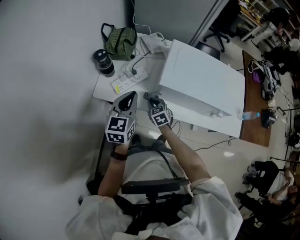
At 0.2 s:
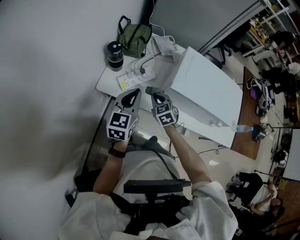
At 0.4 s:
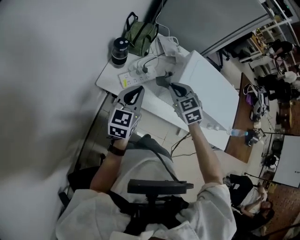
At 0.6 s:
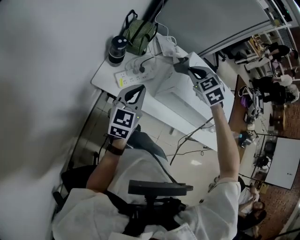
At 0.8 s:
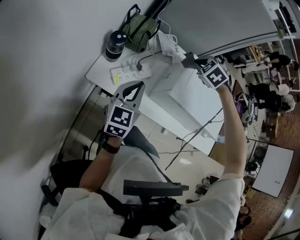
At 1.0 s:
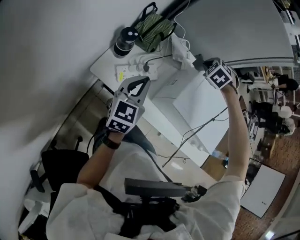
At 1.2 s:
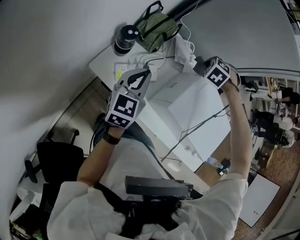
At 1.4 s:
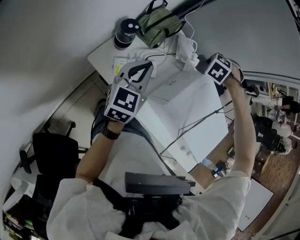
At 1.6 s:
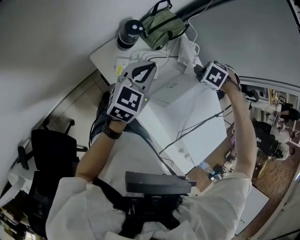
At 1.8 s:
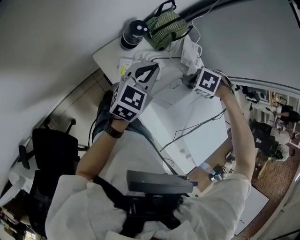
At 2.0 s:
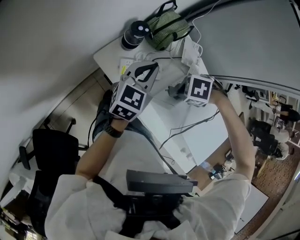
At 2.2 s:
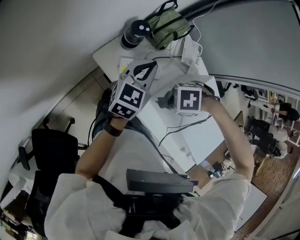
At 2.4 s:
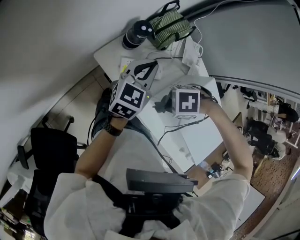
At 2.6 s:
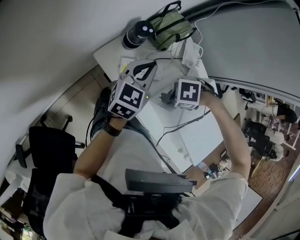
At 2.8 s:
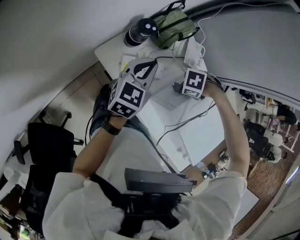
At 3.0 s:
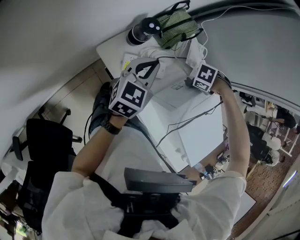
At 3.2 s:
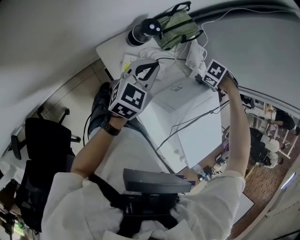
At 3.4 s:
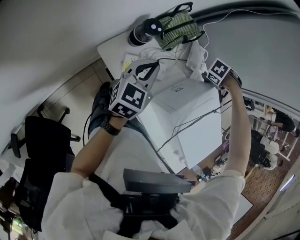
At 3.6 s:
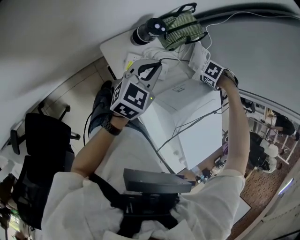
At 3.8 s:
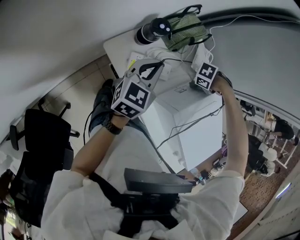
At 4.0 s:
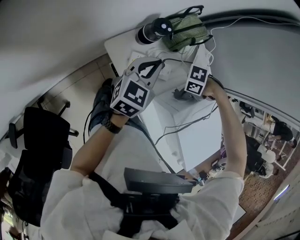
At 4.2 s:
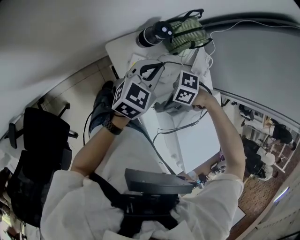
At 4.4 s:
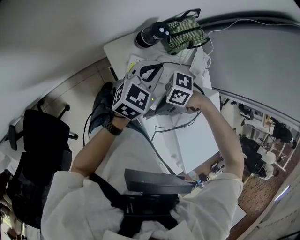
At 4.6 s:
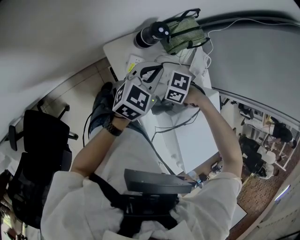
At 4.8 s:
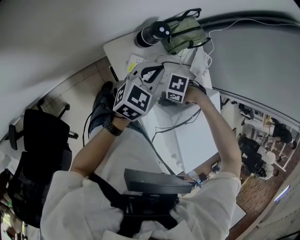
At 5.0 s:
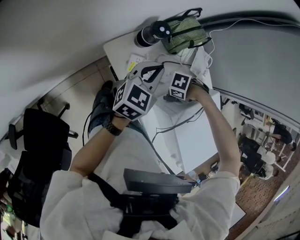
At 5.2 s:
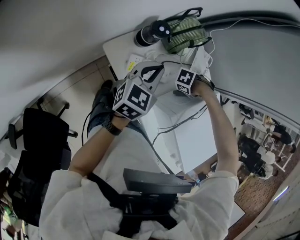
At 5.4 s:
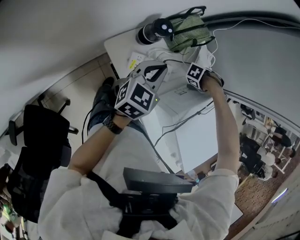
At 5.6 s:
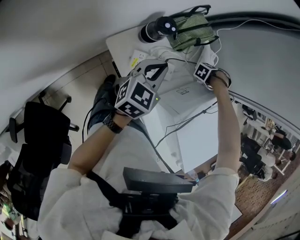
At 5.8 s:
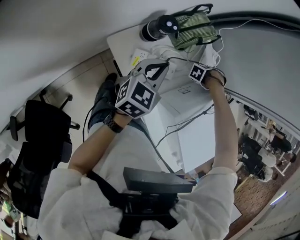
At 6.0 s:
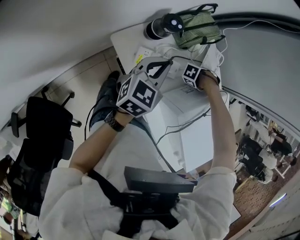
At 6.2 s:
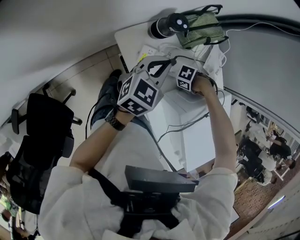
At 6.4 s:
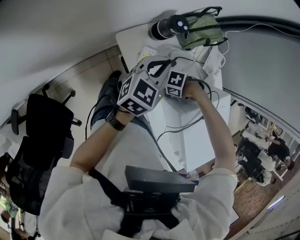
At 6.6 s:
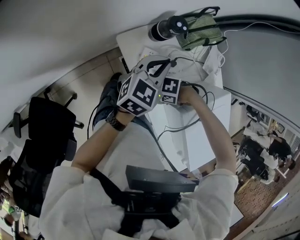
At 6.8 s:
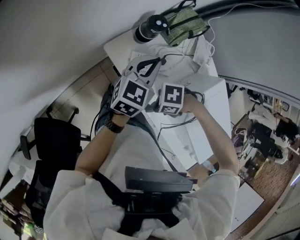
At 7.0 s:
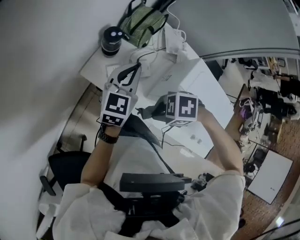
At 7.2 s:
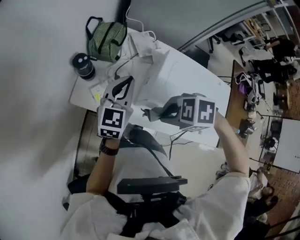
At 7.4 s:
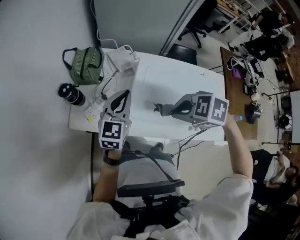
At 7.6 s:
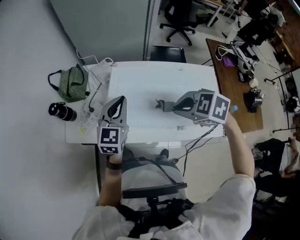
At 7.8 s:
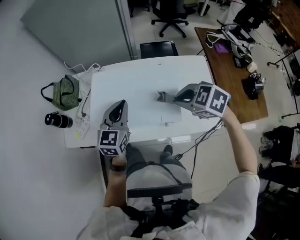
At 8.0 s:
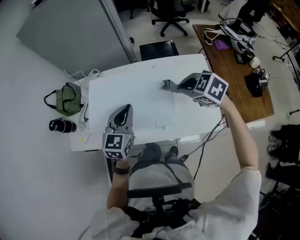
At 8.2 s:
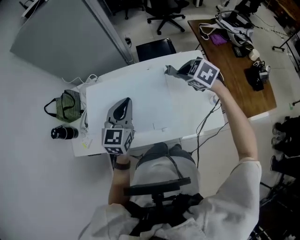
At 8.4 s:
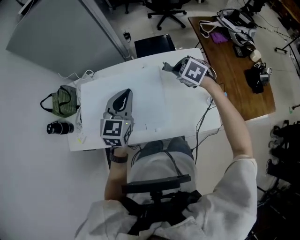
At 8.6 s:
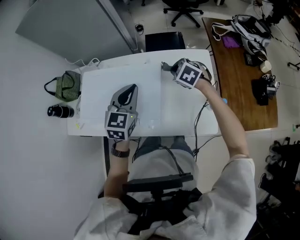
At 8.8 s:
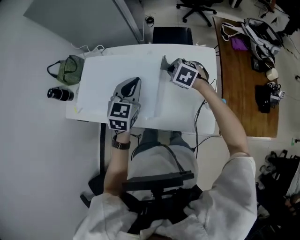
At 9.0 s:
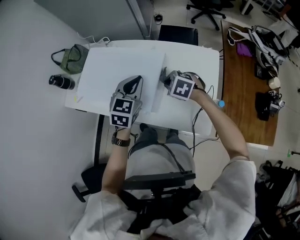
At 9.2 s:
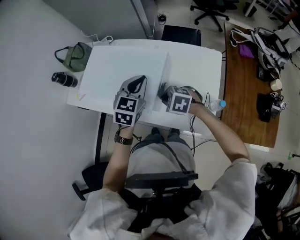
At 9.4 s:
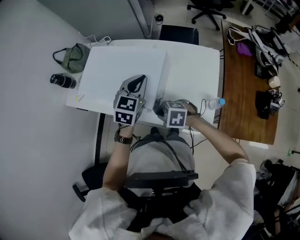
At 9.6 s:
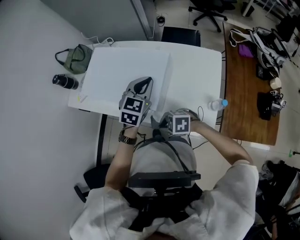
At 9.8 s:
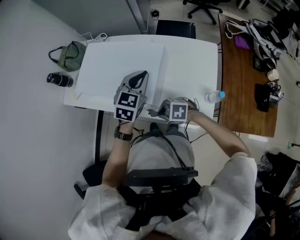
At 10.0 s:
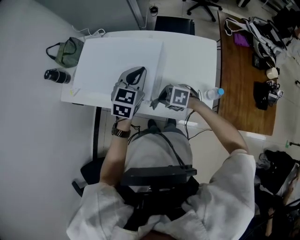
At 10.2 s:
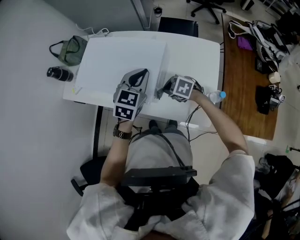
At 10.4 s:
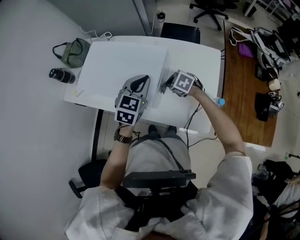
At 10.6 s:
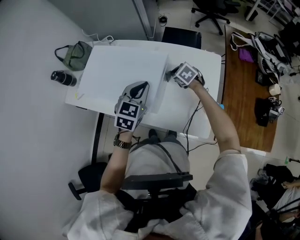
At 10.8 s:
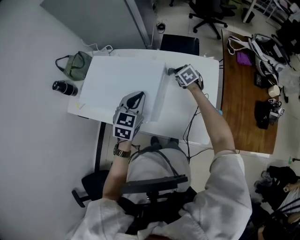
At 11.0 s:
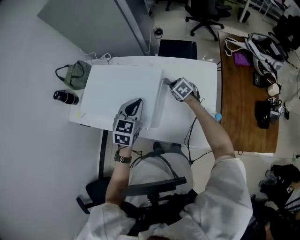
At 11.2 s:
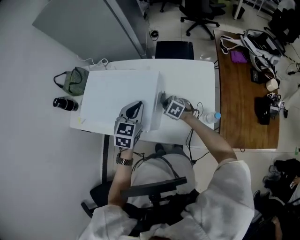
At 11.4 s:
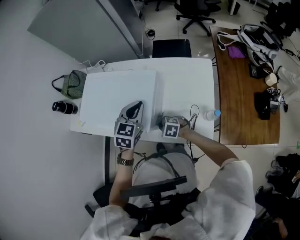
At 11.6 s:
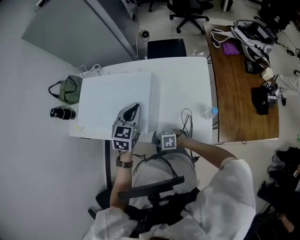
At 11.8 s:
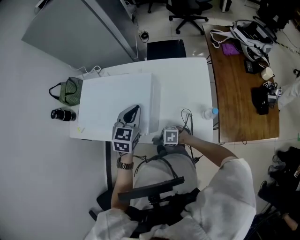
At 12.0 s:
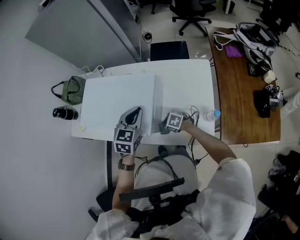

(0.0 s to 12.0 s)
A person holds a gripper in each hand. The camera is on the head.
0.0 s - 1.6 s: The left gripper shifts by approximately 20 cm. Meanwhile the right gripper changes place by about 35 cm, and twists some 70 degrees counterclockwise, seen from behind.
1.6 s - 3.0 s: The left gripper ends up approximately 5 cm from where it was, while the right gripper moves downward, approximately 10 cm, and swivels some 20 degrees.
3.0 s - 4.4 s: The right gripper shifts by roughly 25 cm, and tips its fingers upward by roughly 30 degrees.
4.4 s - 6.0 s: The right gripper changes place by some 35 cm, and changes its angle by about 60 degrees.
6.0 s - 7.6 s: Both grippers are carried some 40 cm. The left gripper changes its angle by about 40 degrees. Meanwhile the right gripper turns by approximately 90 degrees.
7.6 s - 9.0 s: The left gripper moves some 40 cm. The right gripper changes place by roughly 40 cm.
9.0 s - 10.4 s: The right gripper travels downward by roughly 10 cm.
10.4 s - 12.0 s: The right gripper goes about 10 cm downward.

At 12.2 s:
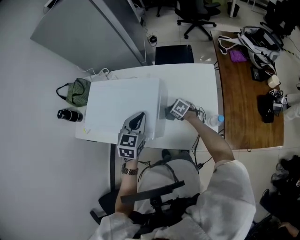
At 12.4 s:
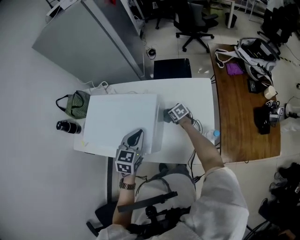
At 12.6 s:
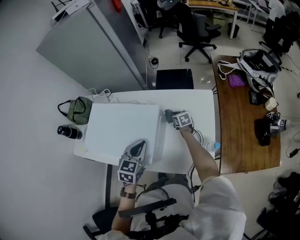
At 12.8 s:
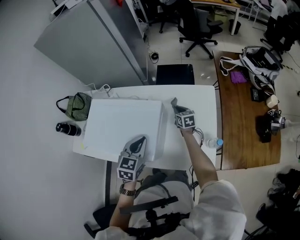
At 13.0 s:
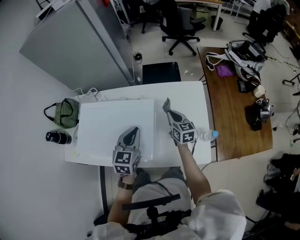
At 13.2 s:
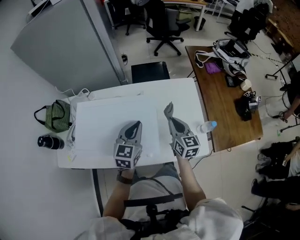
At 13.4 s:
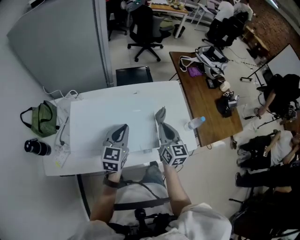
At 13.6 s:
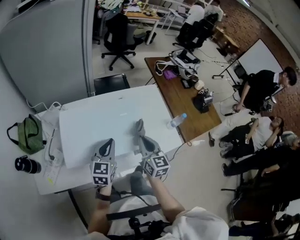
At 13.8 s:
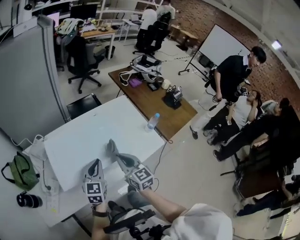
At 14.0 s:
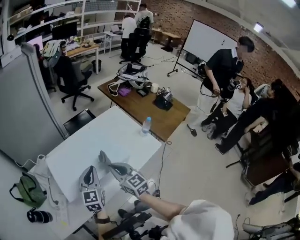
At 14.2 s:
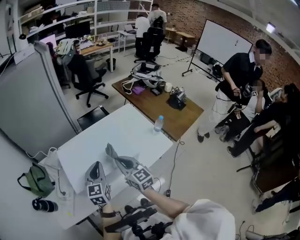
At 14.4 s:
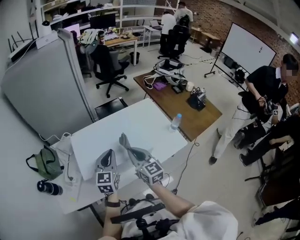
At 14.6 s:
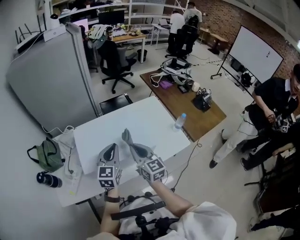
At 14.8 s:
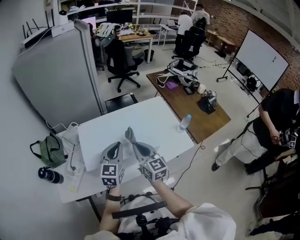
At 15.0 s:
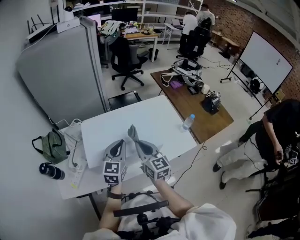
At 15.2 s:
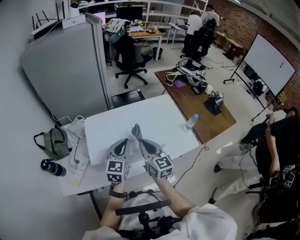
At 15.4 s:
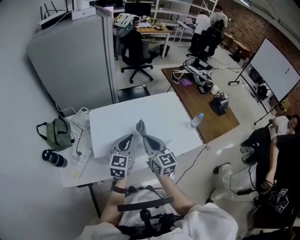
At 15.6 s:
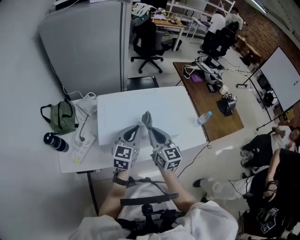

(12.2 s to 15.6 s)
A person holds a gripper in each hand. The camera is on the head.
12.2 s - 13.8 s: The left gripper ends up about 30 cm from where it was, and rotates some 30 degrees. Meanwhile the right gripper ends up some 50 cm from where it was, and tilts its fingers approximately 40 degrees upward.
13.8 s - 15.6 s: The right gripper moves to the left, some 10 cm. Meanwhile the left gripper heads upward, covering about 5 cm.

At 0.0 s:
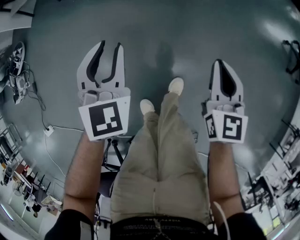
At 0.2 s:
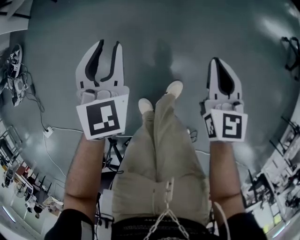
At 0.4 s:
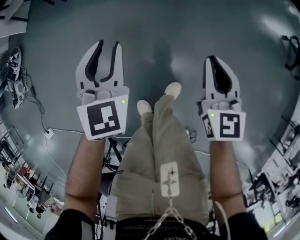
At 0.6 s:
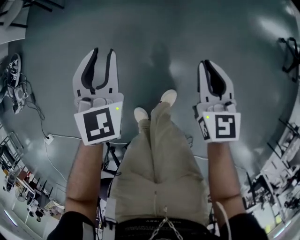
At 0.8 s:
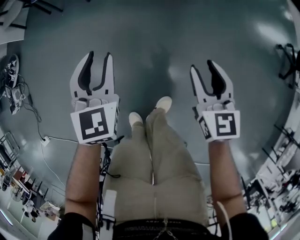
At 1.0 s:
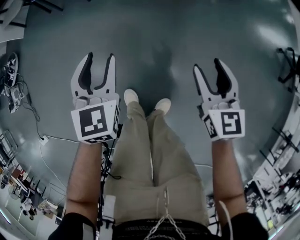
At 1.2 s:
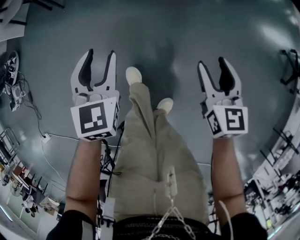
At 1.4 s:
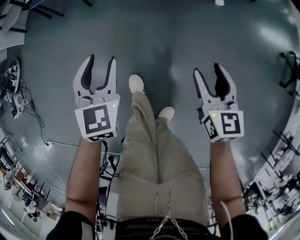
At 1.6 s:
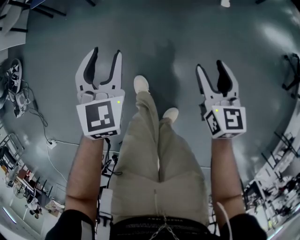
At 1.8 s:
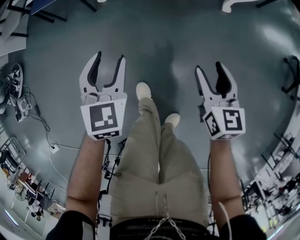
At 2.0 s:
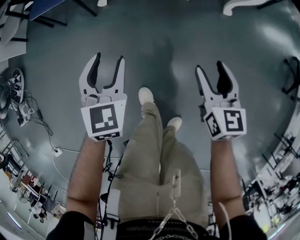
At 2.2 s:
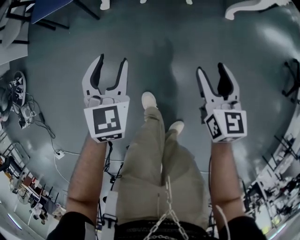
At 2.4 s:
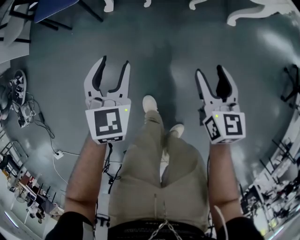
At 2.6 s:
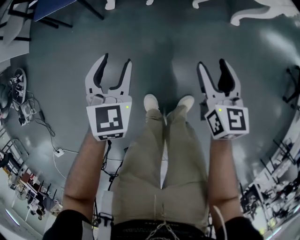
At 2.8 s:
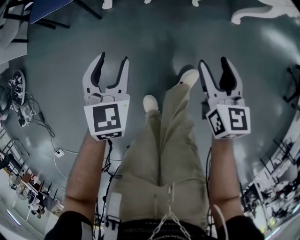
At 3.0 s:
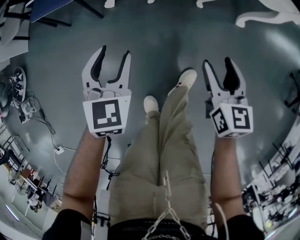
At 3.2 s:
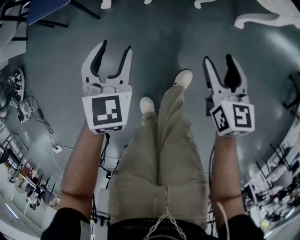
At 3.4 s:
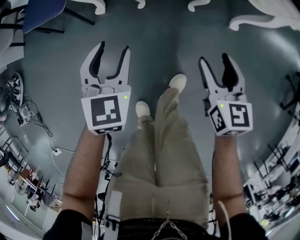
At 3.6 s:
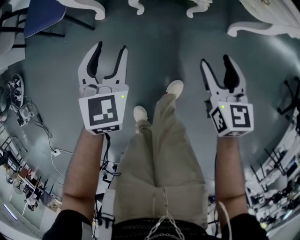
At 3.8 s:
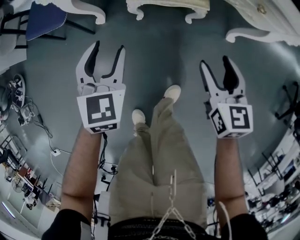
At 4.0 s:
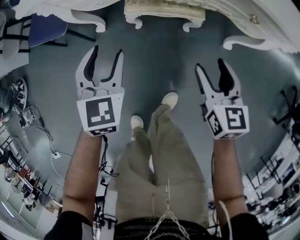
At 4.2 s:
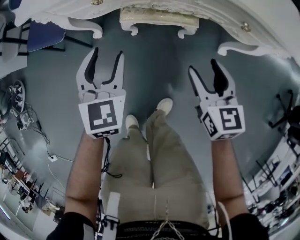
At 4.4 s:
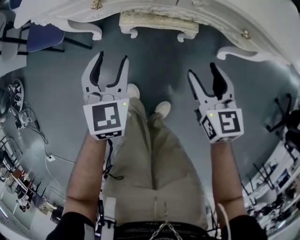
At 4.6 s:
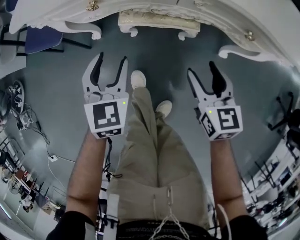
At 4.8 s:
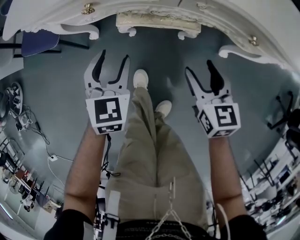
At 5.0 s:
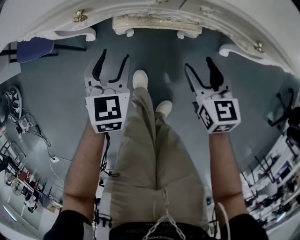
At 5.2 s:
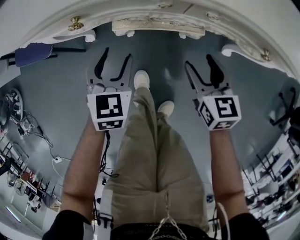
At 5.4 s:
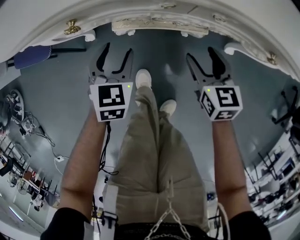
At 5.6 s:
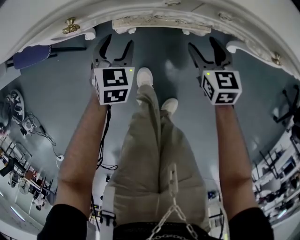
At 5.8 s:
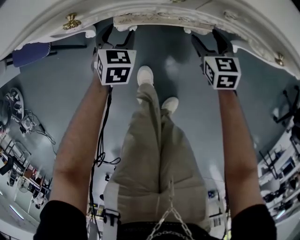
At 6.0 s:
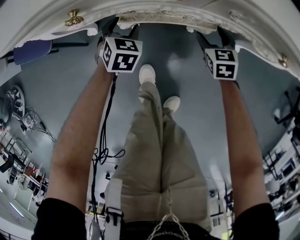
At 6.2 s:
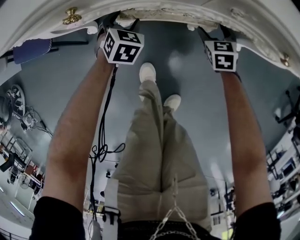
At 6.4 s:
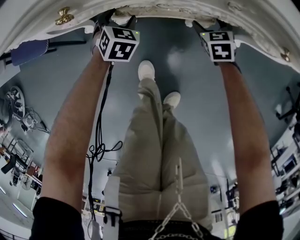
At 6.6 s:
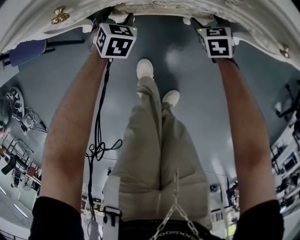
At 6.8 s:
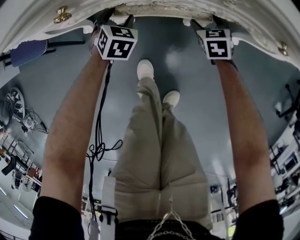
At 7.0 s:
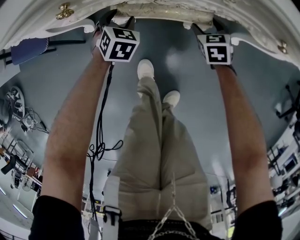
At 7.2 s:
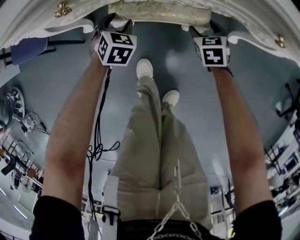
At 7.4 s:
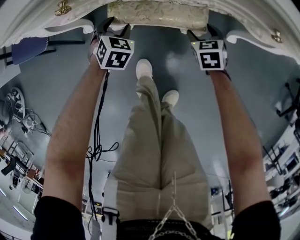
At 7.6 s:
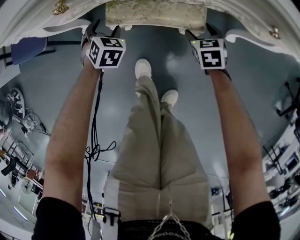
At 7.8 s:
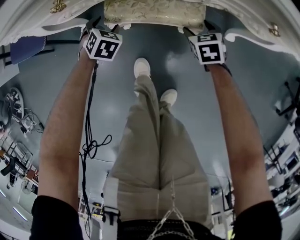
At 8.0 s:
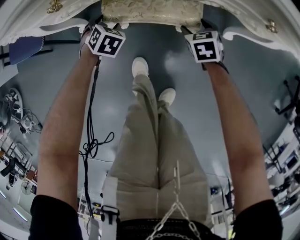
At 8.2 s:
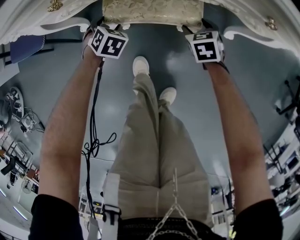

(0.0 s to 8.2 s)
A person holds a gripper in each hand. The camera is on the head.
0.0 s - 1.6 s: The two grippers go about 20 cm forward. The right gripper opens its fingers.
1.6 s - 3.2 s: The grippers both shift forward by approximately 20 cm.
3.2 s - 5.0 s: The right gripper goes approximately 20 cm forward, while the left gripper is displaced forward and to the right by about 20 cm.
5.0 s - 6.6 s: Both grippers travel together downward and forward, about 20 cm. The right gripper changes its angle by some 30 degrees.
6.6 s - 8.2 s: The two grippers go roughly 5 cm backward.
